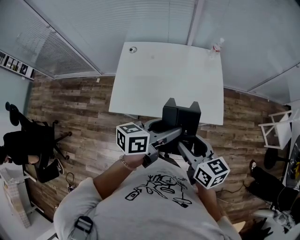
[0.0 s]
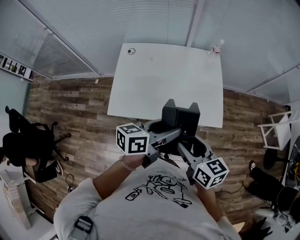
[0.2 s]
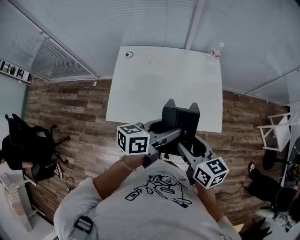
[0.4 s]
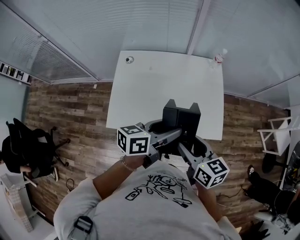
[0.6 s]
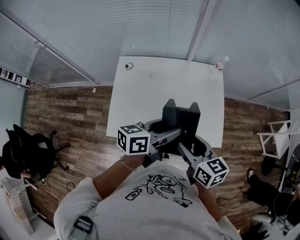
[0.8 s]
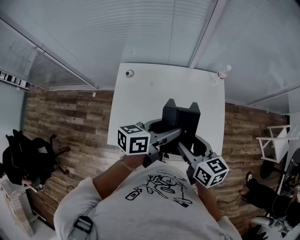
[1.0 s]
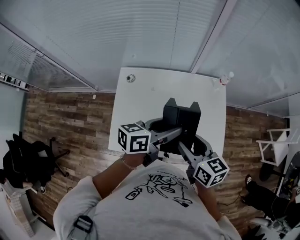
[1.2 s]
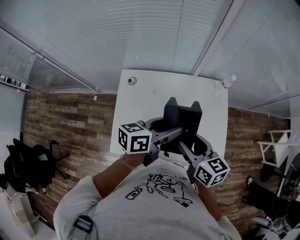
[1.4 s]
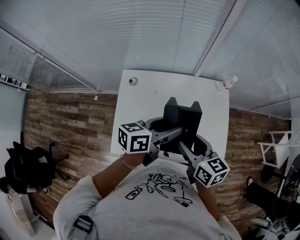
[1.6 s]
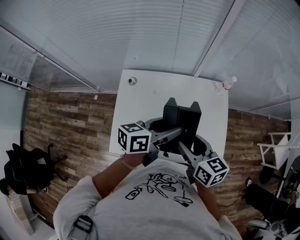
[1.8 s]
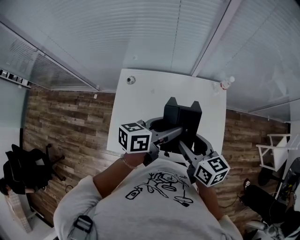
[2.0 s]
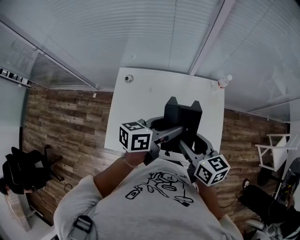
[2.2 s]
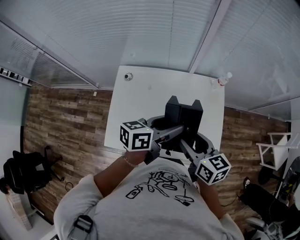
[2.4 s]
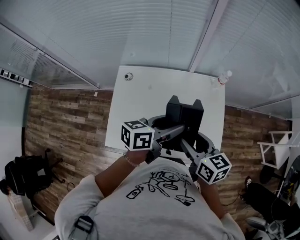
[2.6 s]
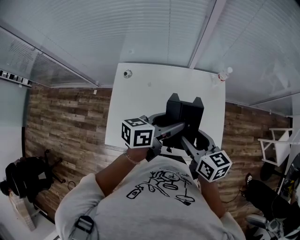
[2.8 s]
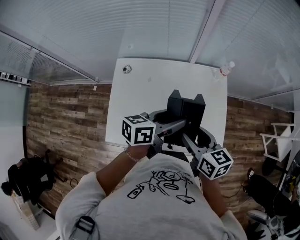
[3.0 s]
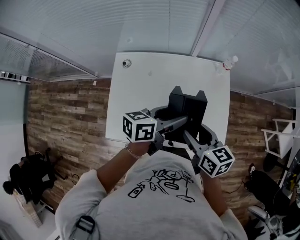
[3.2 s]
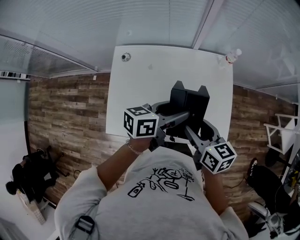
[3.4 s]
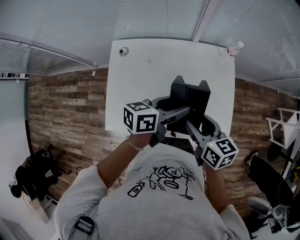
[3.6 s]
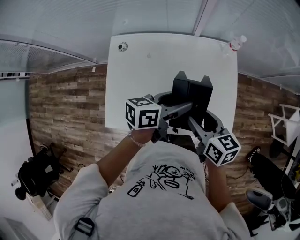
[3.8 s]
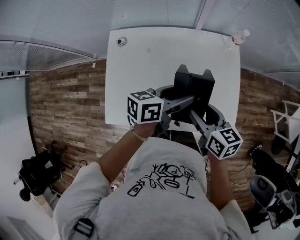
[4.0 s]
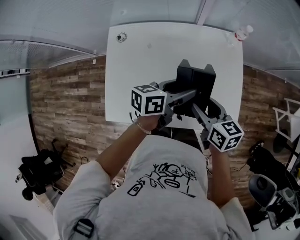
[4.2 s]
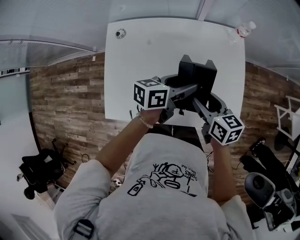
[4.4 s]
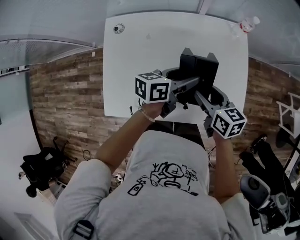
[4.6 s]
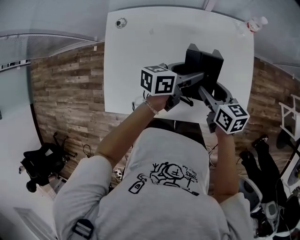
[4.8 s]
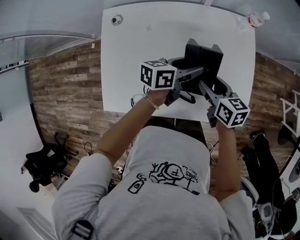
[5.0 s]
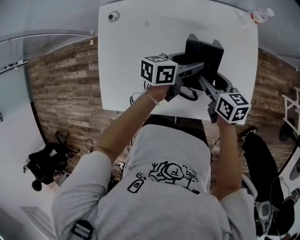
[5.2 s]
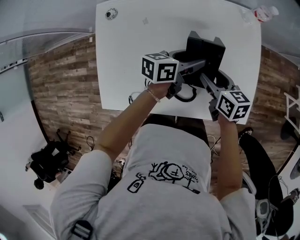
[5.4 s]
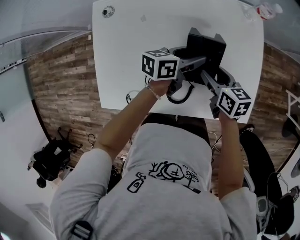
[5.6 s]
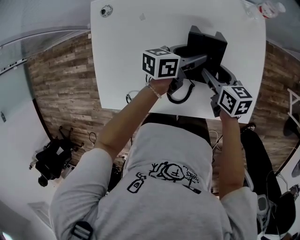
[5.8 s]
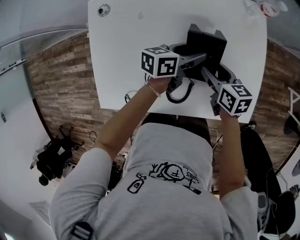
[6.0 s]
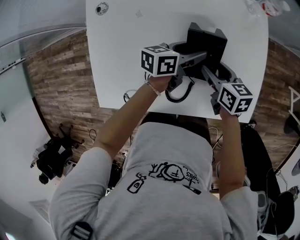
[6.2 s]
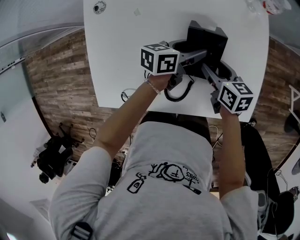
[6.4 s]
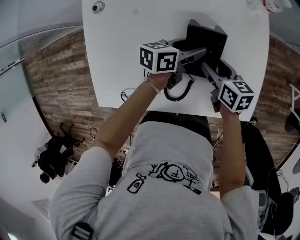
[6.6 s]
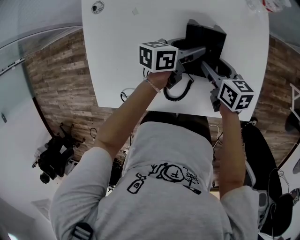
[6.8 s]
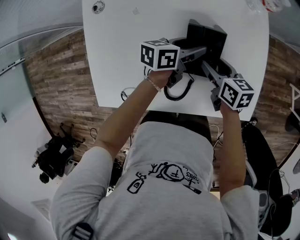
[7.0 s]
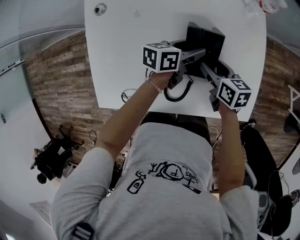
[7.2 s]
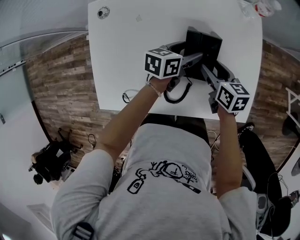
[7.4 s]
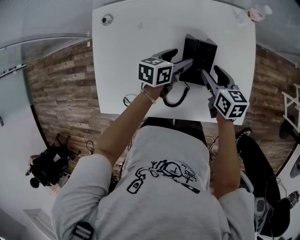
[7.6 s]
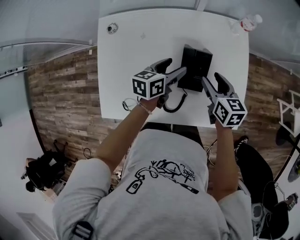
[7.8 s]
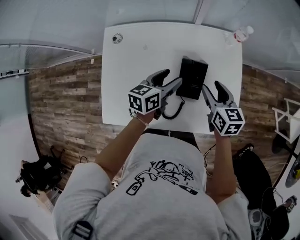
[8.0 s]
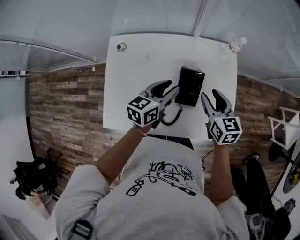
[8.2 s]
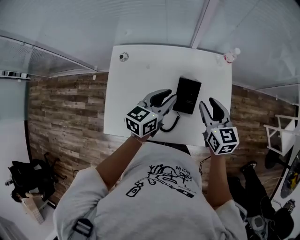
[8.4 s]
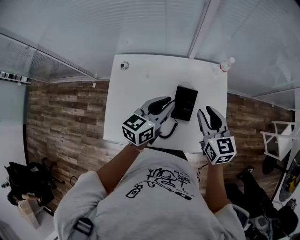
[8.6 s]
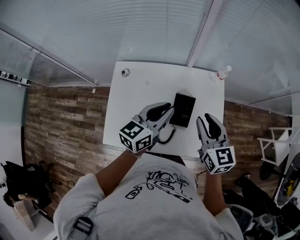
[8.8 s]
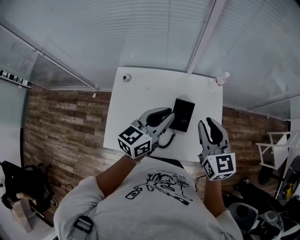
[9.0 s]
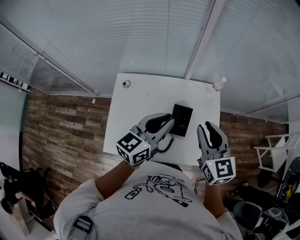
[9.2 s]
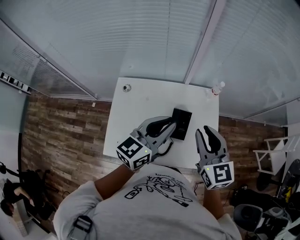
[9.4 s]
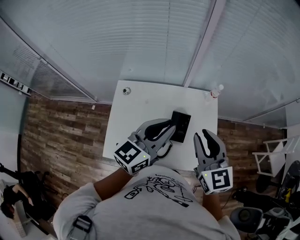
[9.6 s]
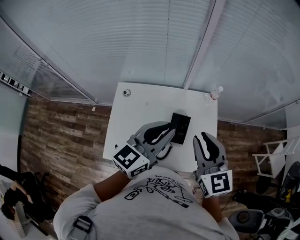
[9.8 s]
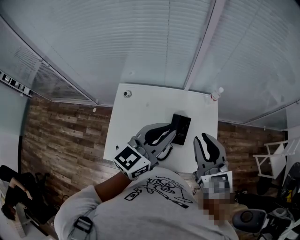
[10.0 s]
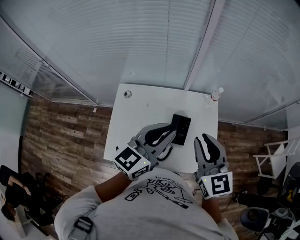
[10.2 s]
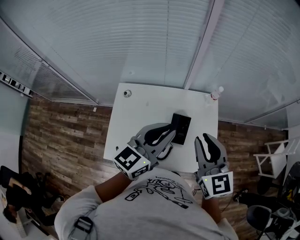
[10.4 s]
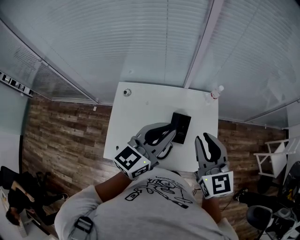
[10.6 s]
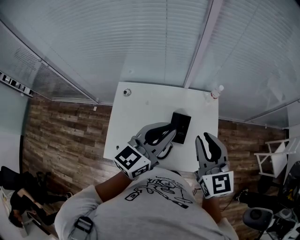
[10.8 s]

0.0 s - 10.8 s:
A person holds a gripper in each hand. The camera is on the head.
0.0 s - 1.6 s: The two grippers go roughly 30 cm forward.
1.6 s - 3.0 s: The grippers both shift to the right by about 5 cm.
3.0 s - 4.6 s: Both grippers move downward, about 15 cm.
4.6 s - 6.2 s: Both grippers move downward, about 15 cm.
6.2 s - 7.8 s: The left gripper moves approximately 5 cm. Meanwhile the right gripper is displaced upward by approximately 10 cm.
7.8 s - 9.2 s: The grippers both shift upward by approximately 30 cm. The left gripper turns by about 30 degrees, and closes, while the right gripper swivels about 30 degrees, and closes.
9.2 s - 10.8 s: The right gripper changes place by approximately 5 cm. The left gripper shifts some 5 cm upward.

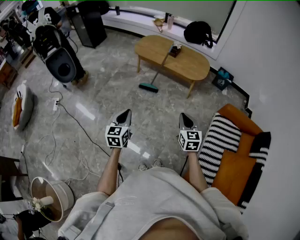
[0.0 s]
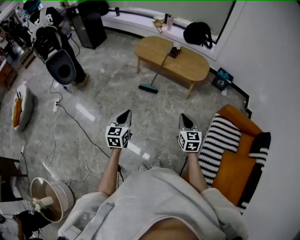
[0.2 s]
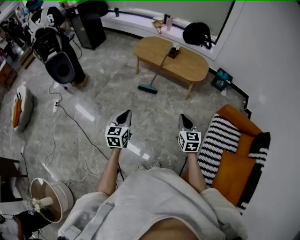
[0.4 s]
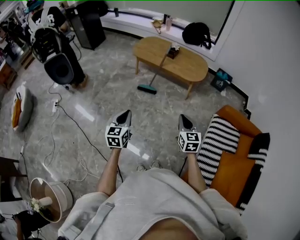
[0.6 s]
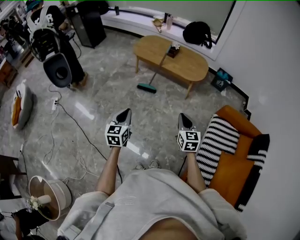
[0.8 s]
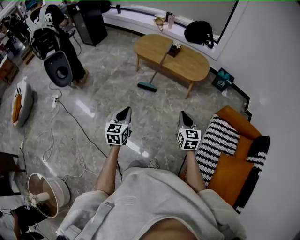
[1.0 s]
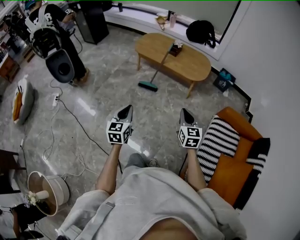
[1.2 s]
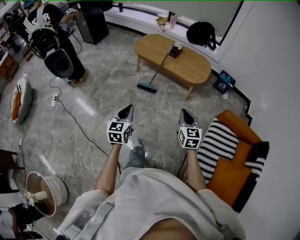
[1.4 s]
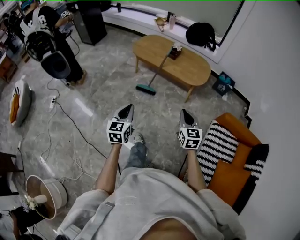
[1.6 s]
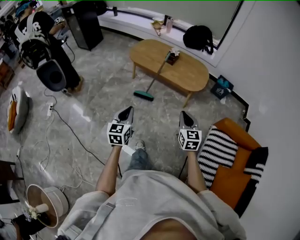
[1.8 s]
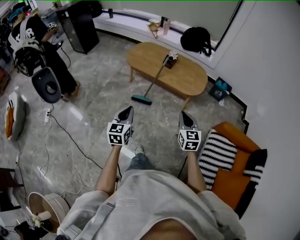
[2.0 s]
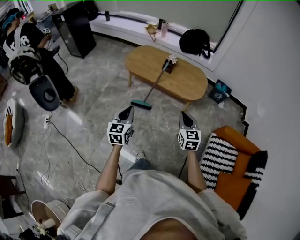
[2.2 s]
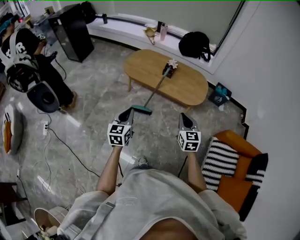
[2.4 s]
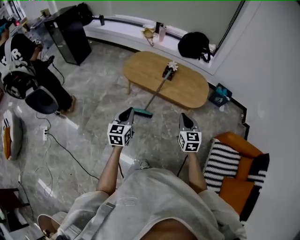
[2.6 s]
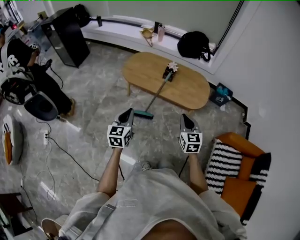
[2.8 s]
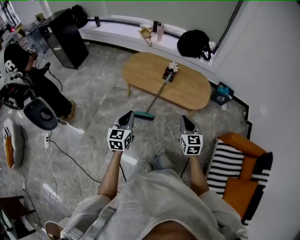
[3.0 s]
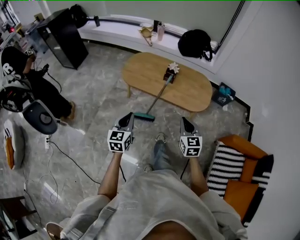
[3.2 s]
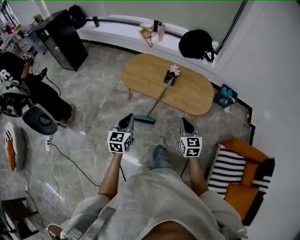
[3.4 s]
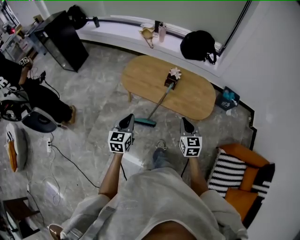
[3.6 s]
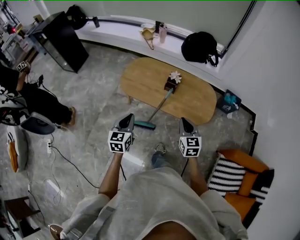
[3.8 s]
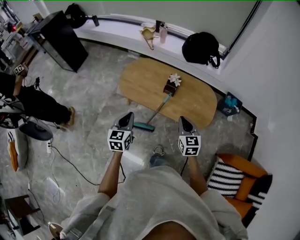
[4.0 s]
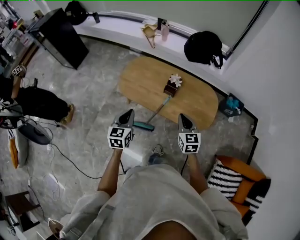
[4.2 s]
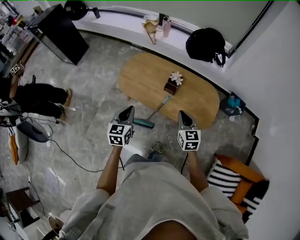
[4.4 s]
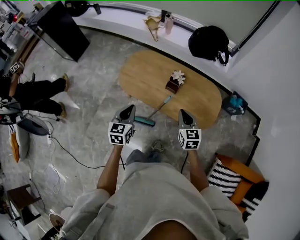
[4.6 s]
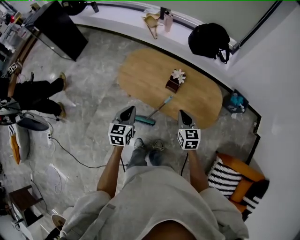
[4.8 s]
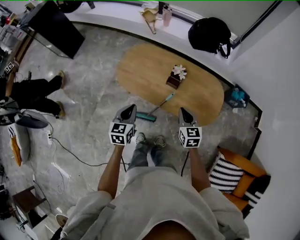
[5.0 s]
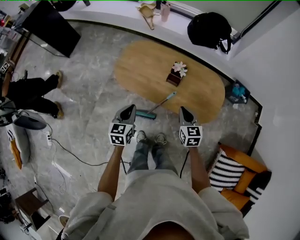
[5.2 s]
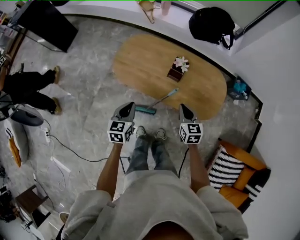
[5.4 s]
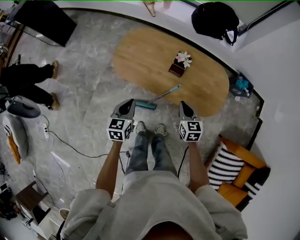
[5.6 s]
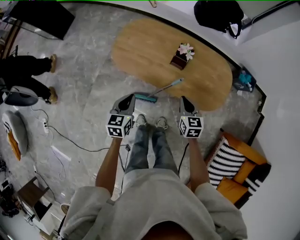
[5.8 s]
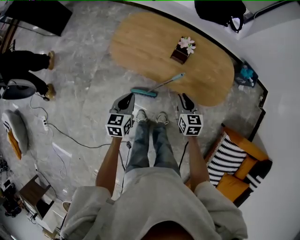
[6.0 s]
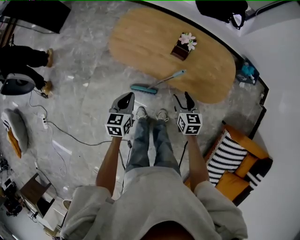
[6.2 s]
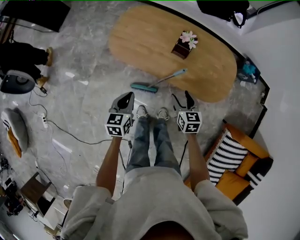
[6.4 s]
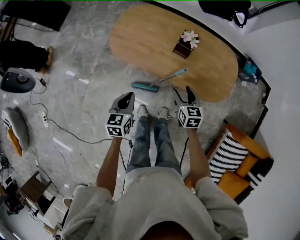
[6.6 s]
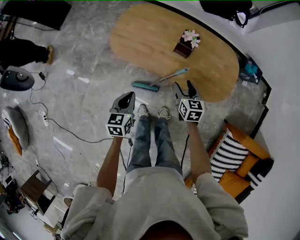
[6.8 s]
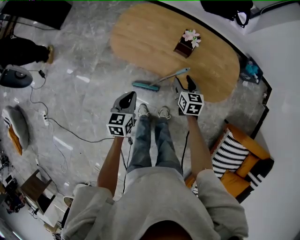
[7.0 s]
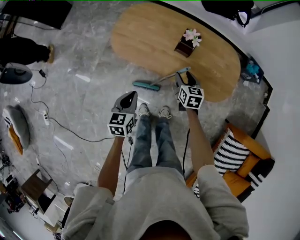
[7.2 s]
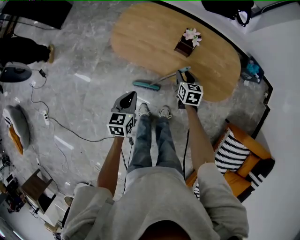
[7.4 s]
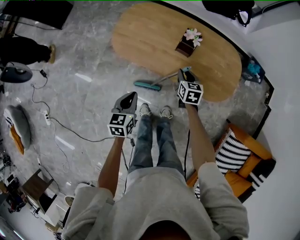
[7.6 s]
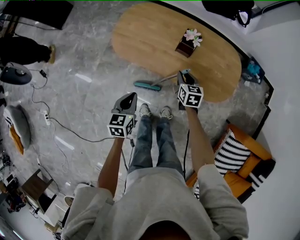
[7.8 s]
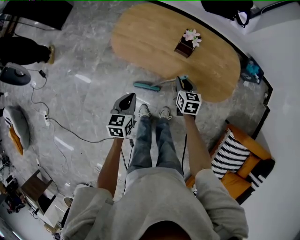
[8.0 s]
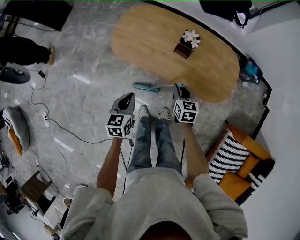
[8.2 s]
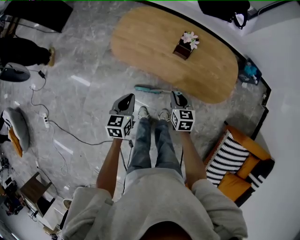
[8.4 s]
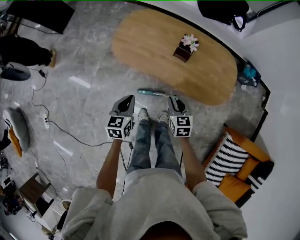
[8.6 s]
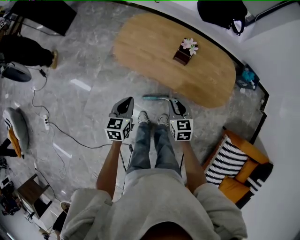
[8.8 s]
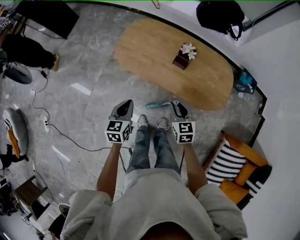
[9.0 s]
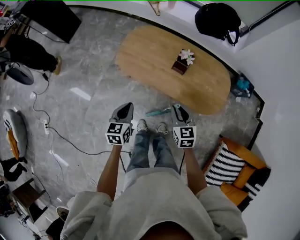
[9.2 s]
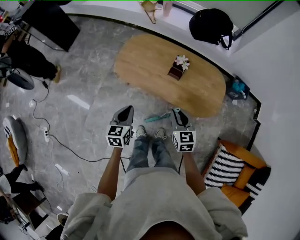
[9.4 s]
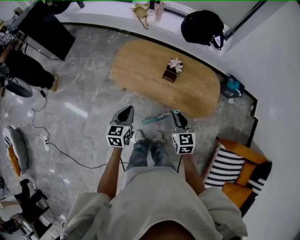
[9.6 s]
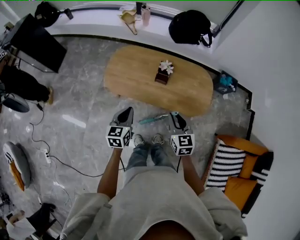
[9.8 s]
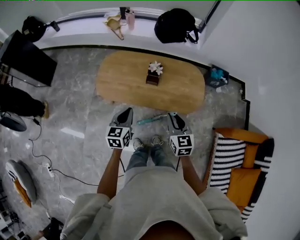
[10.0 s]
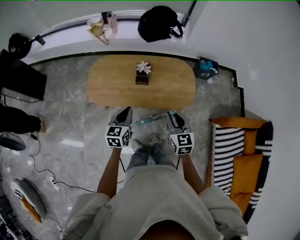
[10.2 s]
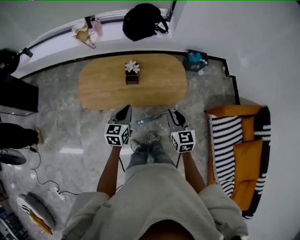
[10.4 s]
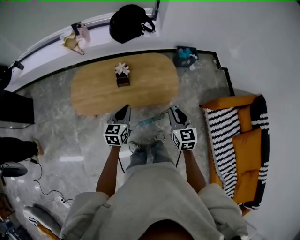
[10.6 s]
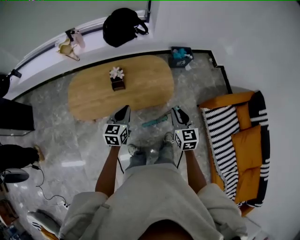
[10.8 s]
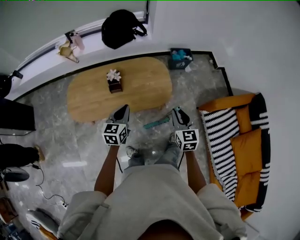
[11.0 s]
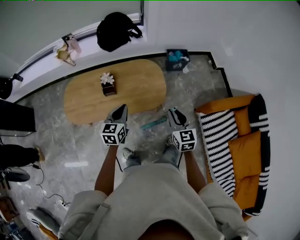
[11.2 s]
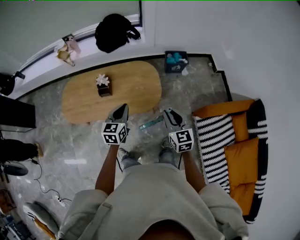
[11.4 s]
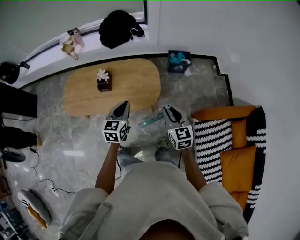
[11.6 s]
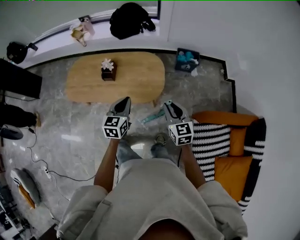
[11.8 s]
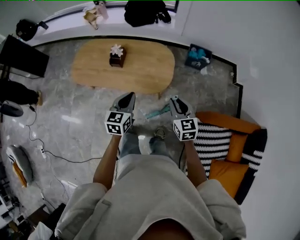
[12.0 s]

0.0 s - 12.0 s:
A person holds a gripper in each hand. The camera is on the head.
0.0 s - 1.6 s: The right gripper moves forward, approximately 10 cm, while the left gripper moves forward and to the right, roughly 10 cm.
1.6 s - 3.0 s: The grippers both shift forward by roughly 30 cm.
3.0 s - 4.4 s: The grippers both shift forward by about 30 cm.
4.4 s - 6.0 s: Both grippers travel together downward, about 15 cm.
6.0 s - 7.6 s: The right gripper heads forward and downward, covering approximately 10 cm, and opens and closes again.
7.6 s - 9.0 s: The left gripper moves some 5 cm; the right gripper travels backward and upward by some 15 cm.
9.0 s - 10.4 s: The left gripper changes place by approximately 20 cm, and turns by some 30 degrees, while the right gripper goes roughly 15 cm upward, and turns by roughly 30 degrees.
10.4 s - 12.0 s: The grippers both shift to the right by about 30 cm.

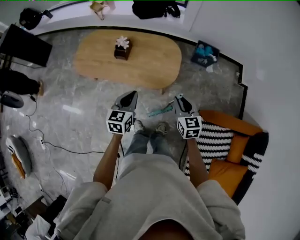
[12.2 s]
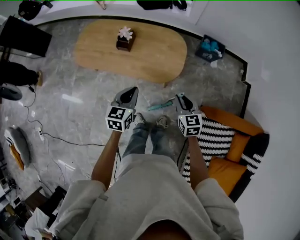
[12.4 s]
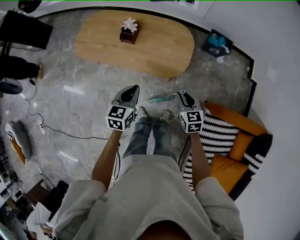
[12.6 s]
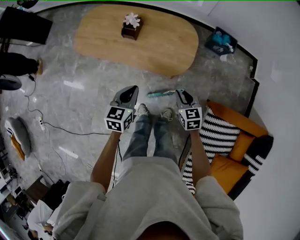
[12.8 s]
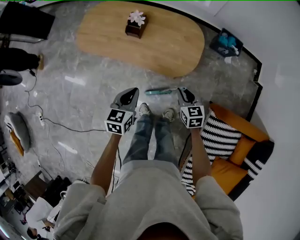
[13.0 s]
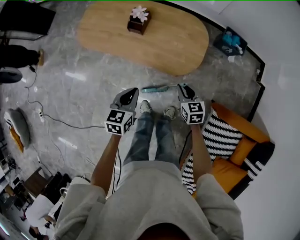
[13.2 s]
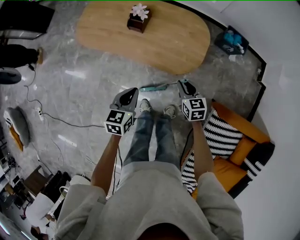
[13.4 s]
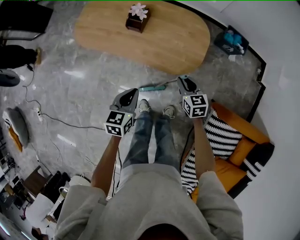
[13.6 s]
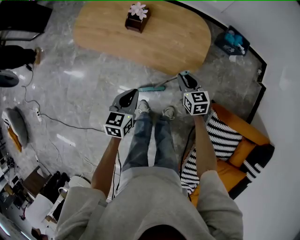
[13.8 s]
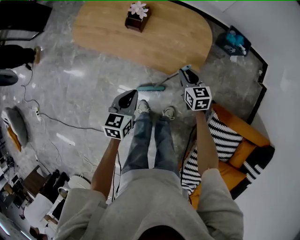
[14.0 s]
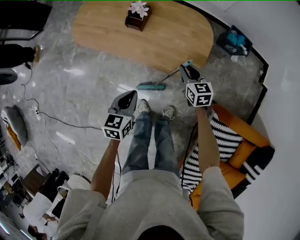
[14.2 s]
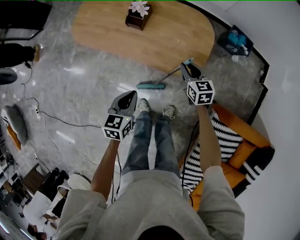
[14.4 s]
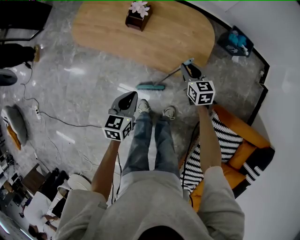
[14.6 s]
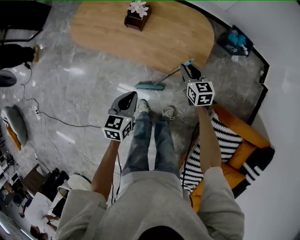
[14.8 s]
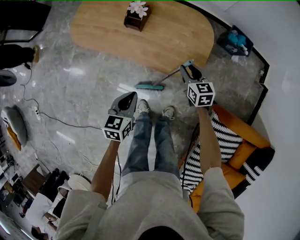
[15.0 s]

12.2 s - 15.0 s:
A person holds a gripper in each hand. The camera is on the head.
12.2 s - 13.6 s: The left gripper travels downward and to the left by some 15 cm. Meanwhile the right gripper is displaced downward, forward and to the left by some 20 cm.
13.6 s - 15.0 s: The right gripper goes some 5 cm forward.
